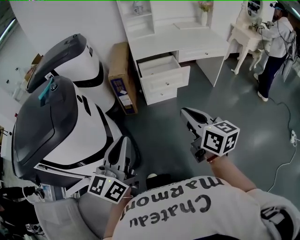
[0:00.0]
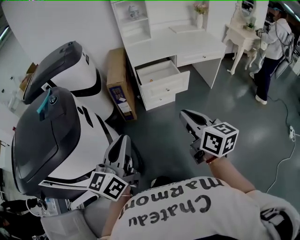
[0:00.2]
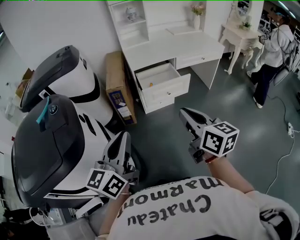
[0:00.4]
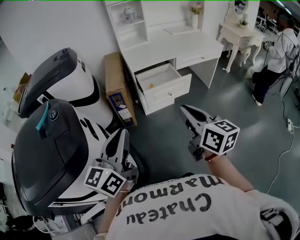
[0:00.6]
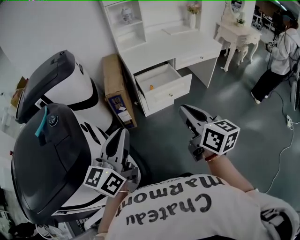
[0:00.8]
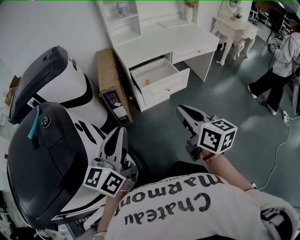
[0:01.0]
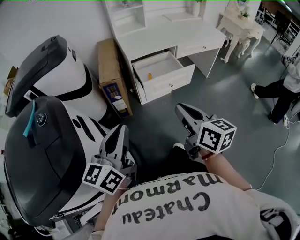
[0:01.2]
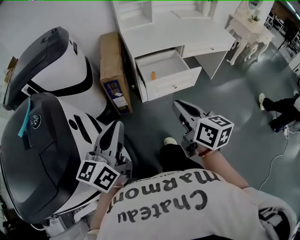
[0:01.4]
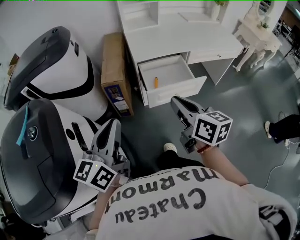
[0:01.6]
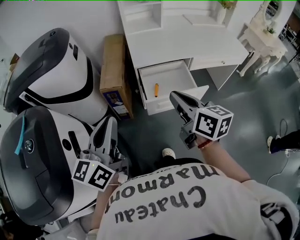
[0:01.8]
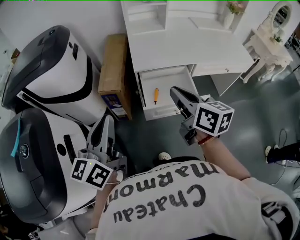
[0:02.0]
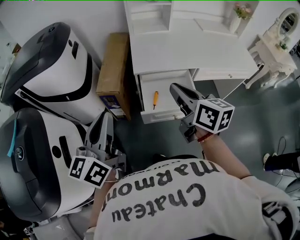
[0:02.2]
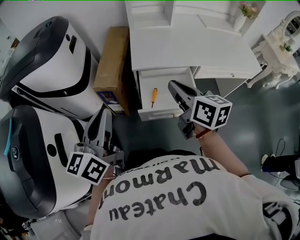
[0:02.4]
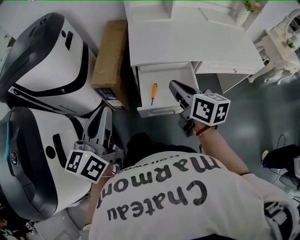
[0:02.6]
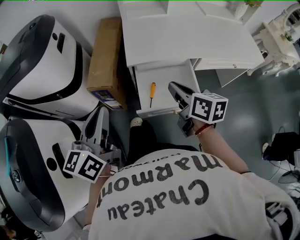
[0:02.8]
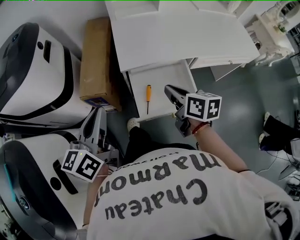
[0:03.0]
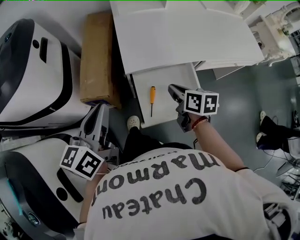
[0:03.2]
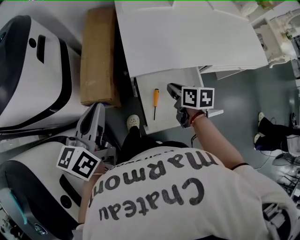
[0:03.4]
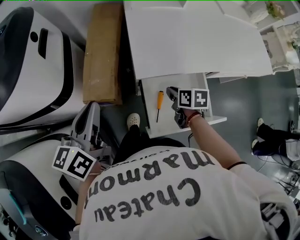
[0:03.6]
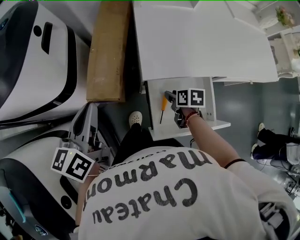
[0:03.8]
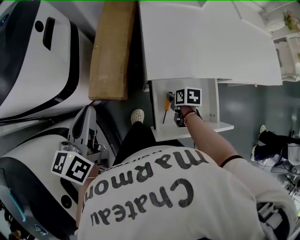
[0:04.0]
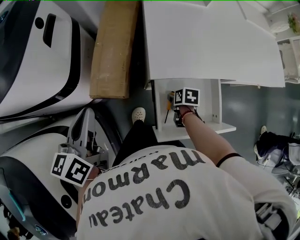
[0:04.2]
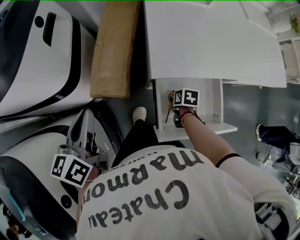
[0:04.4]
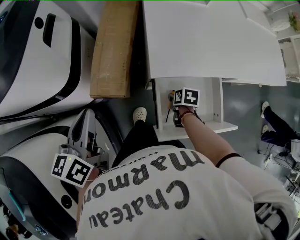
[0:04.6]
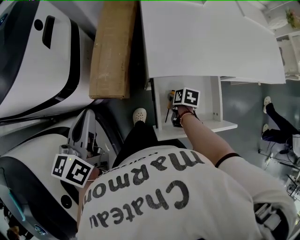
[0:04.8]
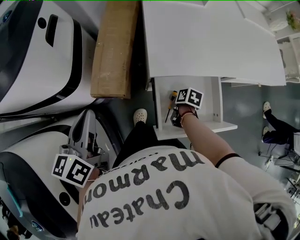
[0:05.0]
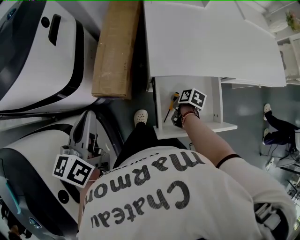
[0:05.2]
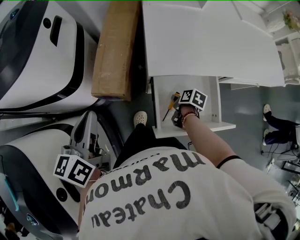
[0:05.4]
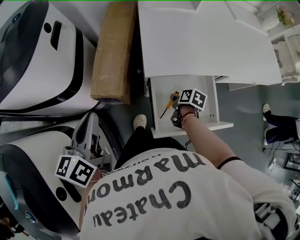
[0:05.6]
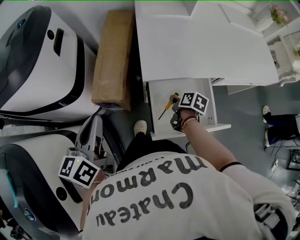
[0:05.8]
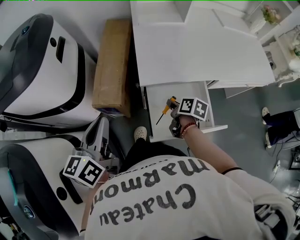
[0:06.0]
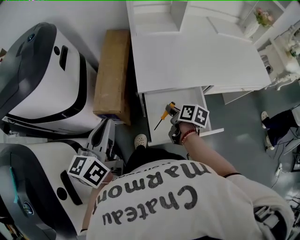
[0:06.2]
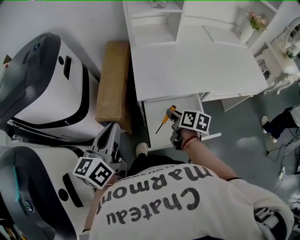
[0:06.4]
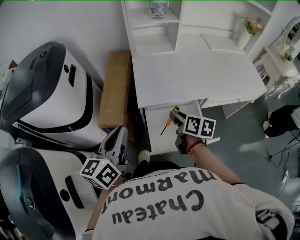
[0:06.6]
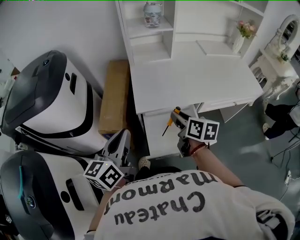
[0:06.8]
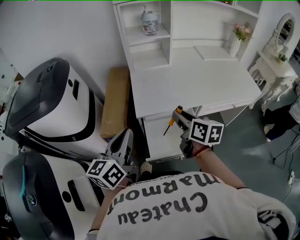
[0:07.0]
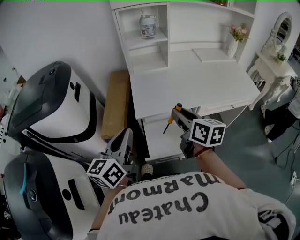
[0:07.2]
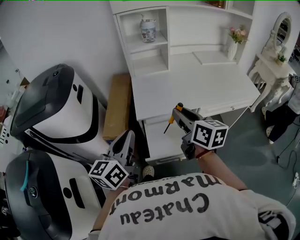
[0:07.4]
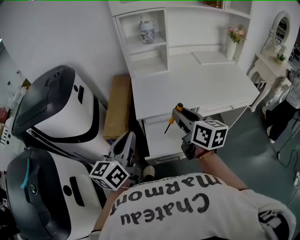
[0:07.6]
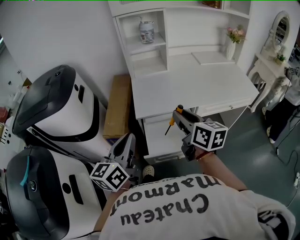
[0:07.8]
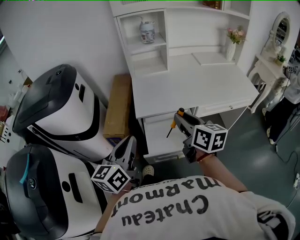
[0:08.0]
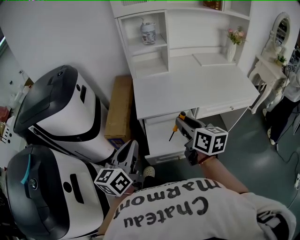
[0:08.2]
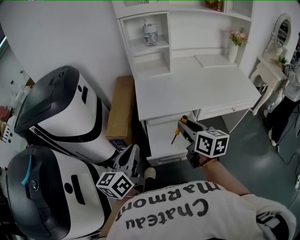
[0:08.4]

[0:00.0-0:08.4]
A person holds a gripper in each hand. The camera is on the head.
0:00.0 to 0:01.4: The two grippers go approximately 25 cm forward and to the left.
0:01.4 to 0:02.8: Both grippers move forward, some 30 cm.
0:02.8 to 0:04.2: The right gripper shifts roughly 30 cm downward, tilts its fingers roughly 50 degrees downward, and opens up, while the left gripper moves forward, to the left and downward, about 25 cm.
0:04.2 to 0:05.6: The left gripper shifts by approximately 5 cm; the right gripper rotates approximately 20 degrees.
0:05.6 to 0:07.0: The right gripper travels upward by about 35 cm, and angles its fingers upward, by roughly 40 degrees. Meanwhile the left gripper goes approximately 20 cm to the right and upward.
0:07.0 to 0:08.4: Both grippers travel together backward, roughly 10 cm.

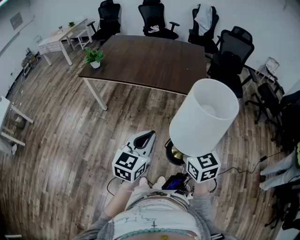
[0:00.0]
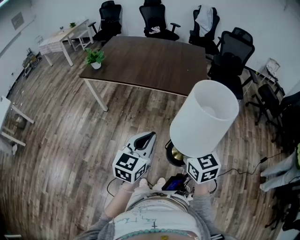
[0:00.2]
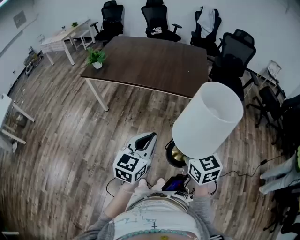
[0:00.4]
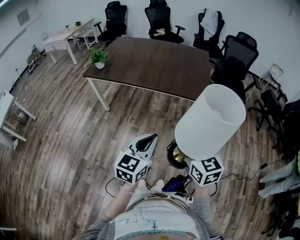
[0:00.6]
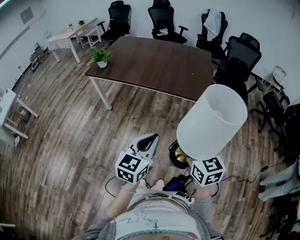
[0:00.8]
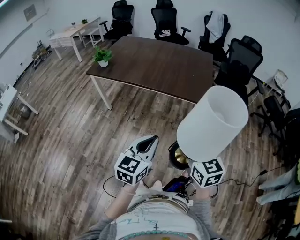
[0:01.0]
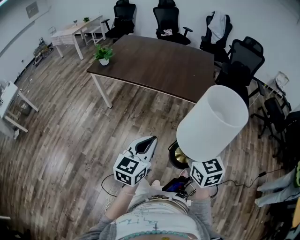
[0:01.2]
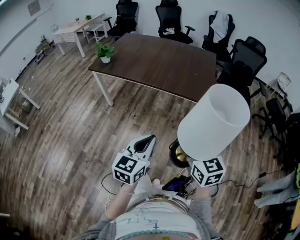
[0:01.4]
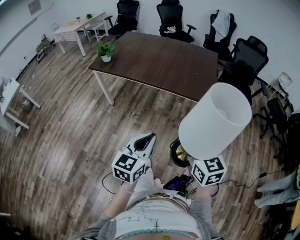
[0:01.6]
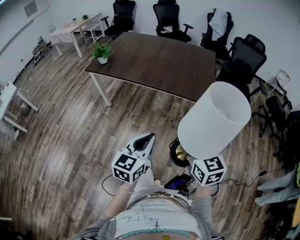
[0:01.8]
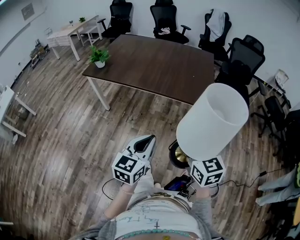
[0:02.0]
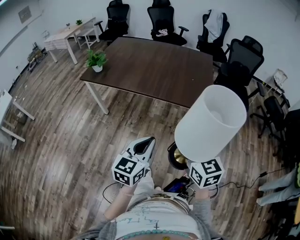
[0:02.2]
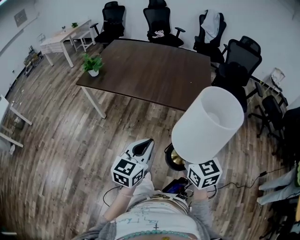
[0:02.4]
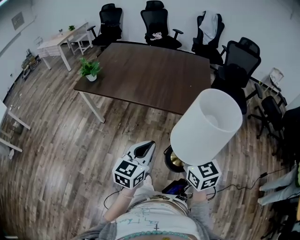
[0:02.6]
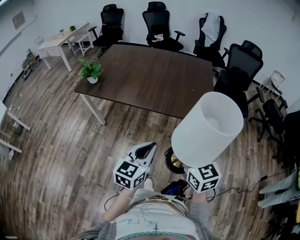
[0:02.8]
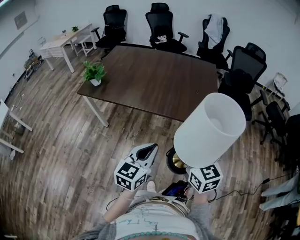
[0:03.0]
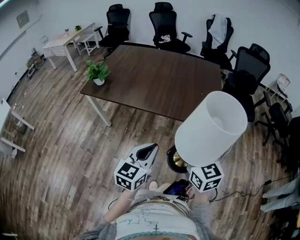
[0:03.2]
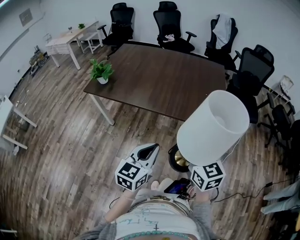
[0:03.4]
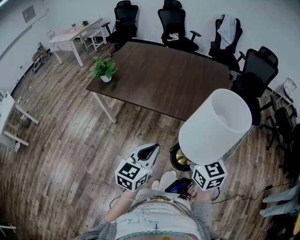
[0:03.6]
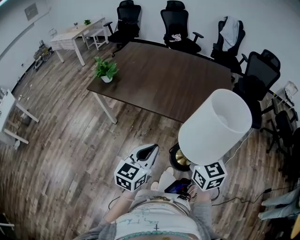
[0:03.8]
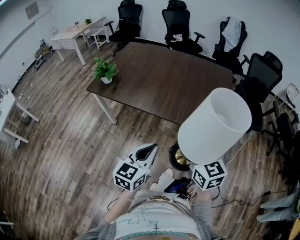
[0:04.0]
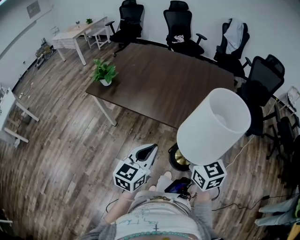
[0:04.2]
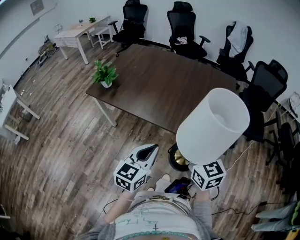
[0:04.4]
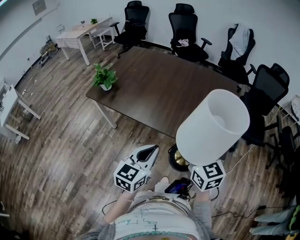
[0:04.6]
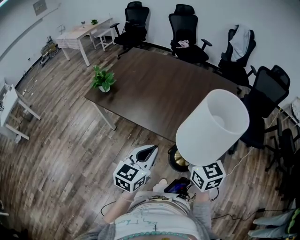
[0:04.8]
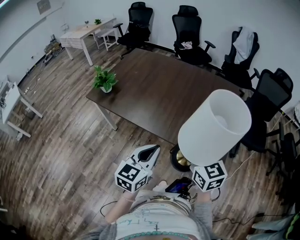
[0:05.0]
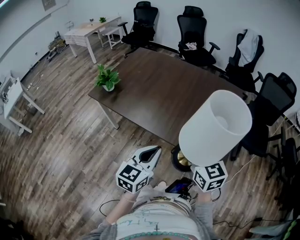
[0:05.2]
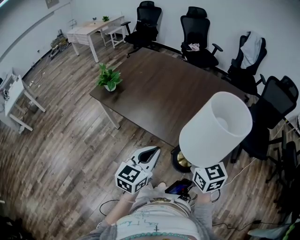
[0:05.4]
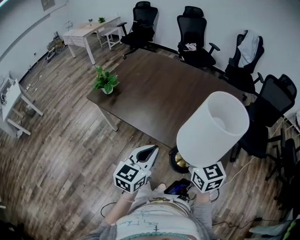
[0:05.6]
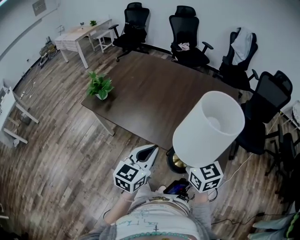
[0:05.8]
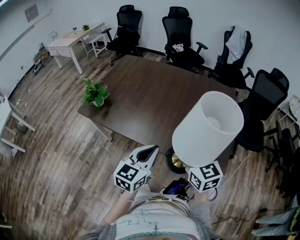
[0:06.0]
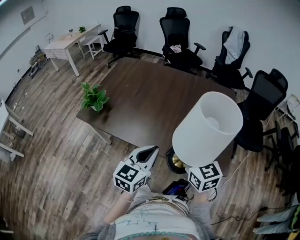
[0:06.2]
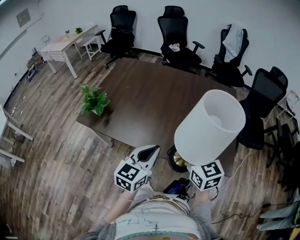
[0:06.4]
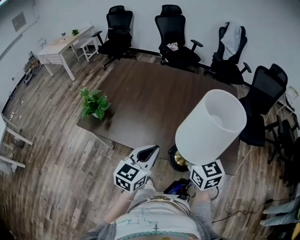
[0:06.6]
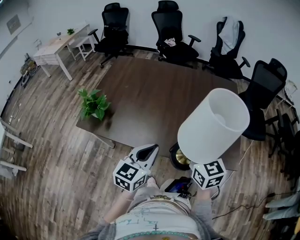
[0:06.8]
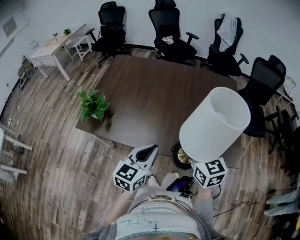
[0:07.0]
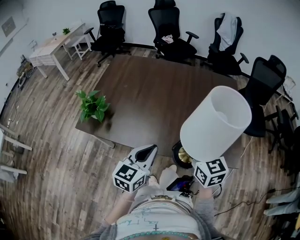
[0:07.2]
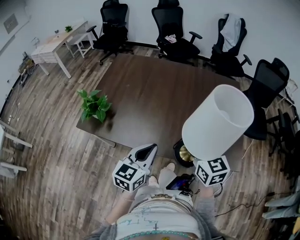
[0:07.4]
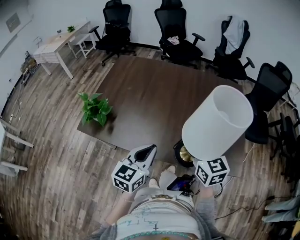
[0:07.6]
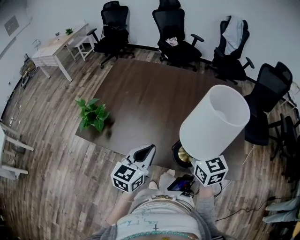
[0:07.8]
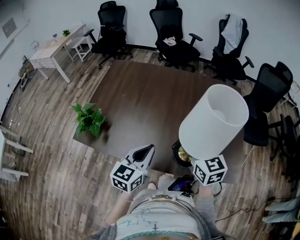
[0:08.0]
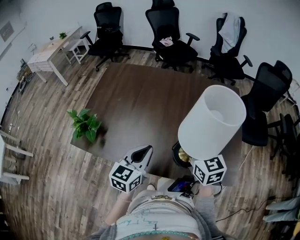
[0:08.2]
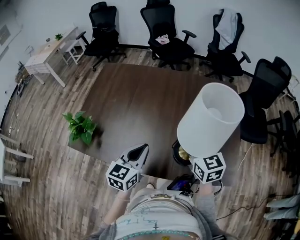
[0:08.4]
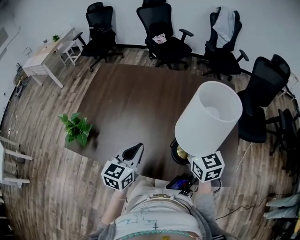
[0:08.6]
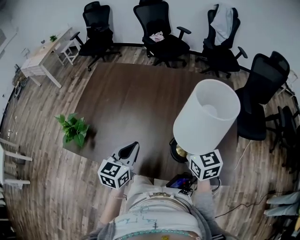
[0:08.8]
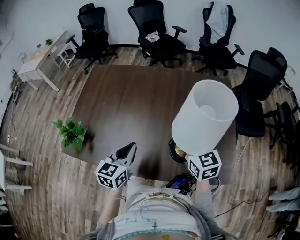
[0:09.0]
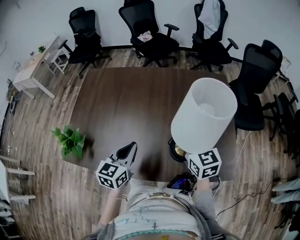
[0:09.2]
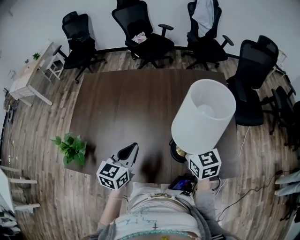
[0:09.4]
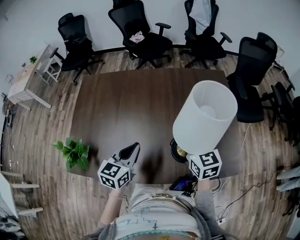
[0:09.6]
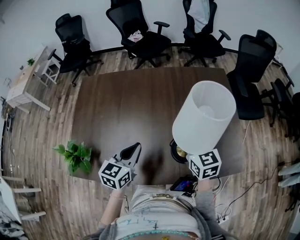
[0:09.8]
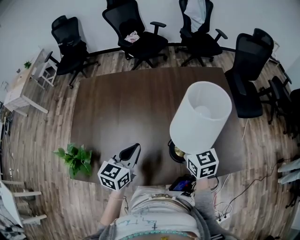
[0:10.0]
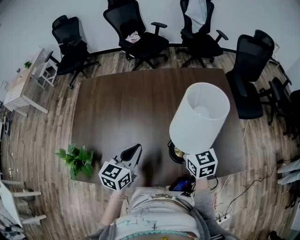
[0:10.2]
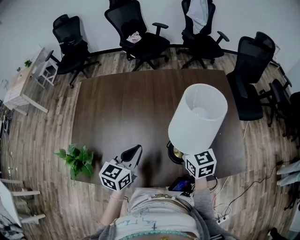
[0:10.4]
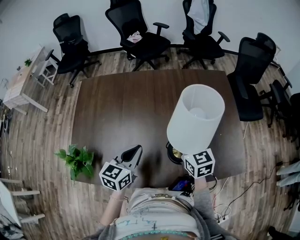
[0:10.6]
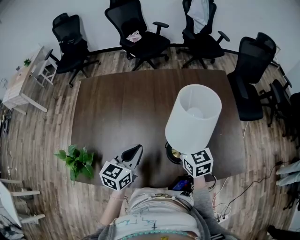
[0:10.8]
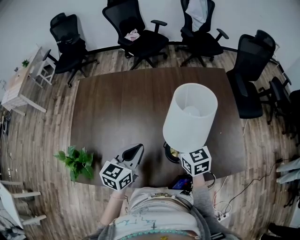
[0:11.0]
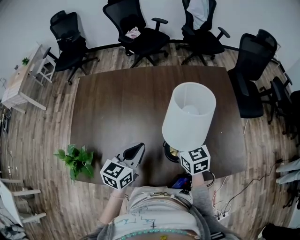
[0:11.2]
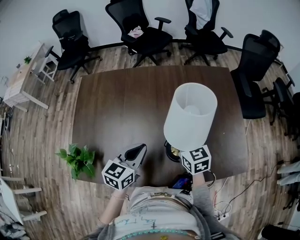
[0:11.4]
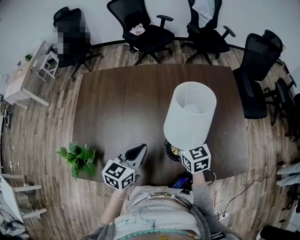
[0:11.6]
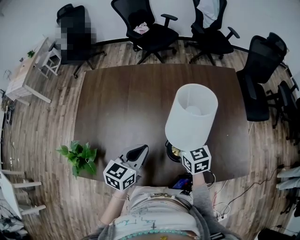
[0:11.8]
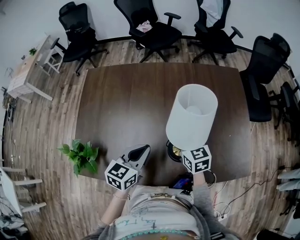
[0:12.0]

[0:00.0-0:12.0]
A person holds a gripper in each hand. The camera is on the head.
0:00.0 to 0:01.6: The right gripper is displaced to the right by roughly 5 cm.
0:01.6 to 0:03.0: The left gripper is displaced forward by about 20 cm. The right gripper goes roughly 20 cm forward and to the left.
0:03.0 to 0:04.4: Both grippers travel together forward, about 15 cm.
0:04.4 to 0:06.0: The two grippers go about 15 cm forward.
0:06.0 to 0:07.6: The left gripper heads to the left and forward, covering some 15 cm; the right gripper moves forward and to the left, some 15 cm.
0:07.6 to 0:09.0: The right gripper travels forward and to the right by roughly 15 cm; the left gripper moves forward, about 15 cm.
0:09.0 to 0:10.4: The left gripper heads forward and to the left, covering approximately 10 cm, while the right gripper travels to the left by about 5 cm.
0:10.4 to 0:12.0: The right gripper heads downward, covering about 5 cm.

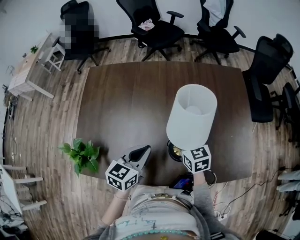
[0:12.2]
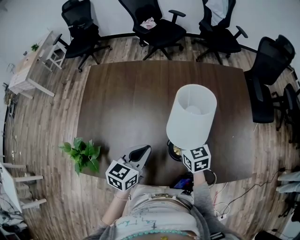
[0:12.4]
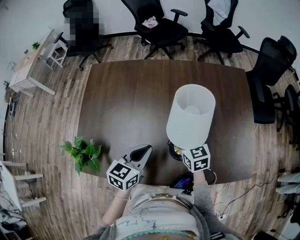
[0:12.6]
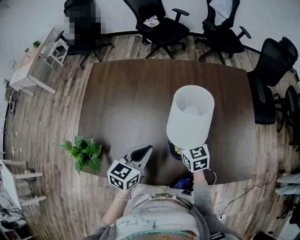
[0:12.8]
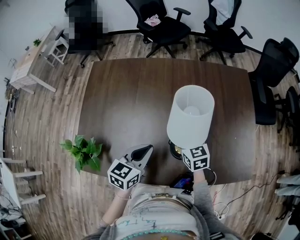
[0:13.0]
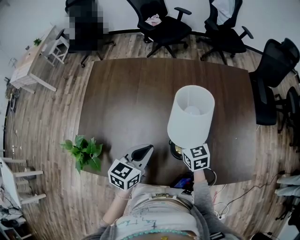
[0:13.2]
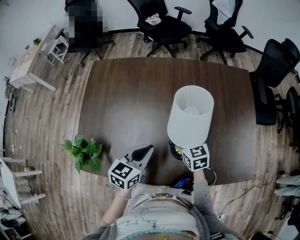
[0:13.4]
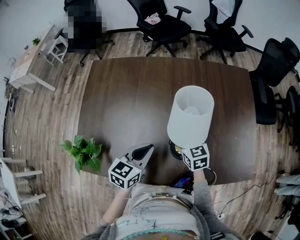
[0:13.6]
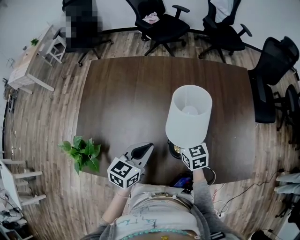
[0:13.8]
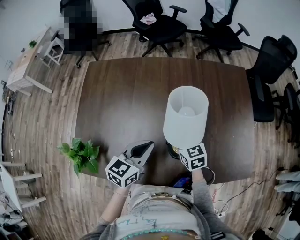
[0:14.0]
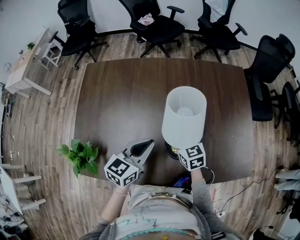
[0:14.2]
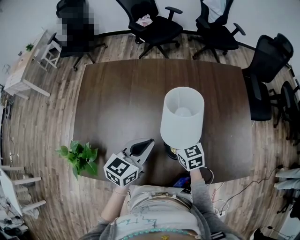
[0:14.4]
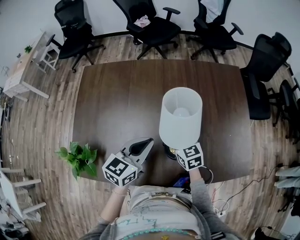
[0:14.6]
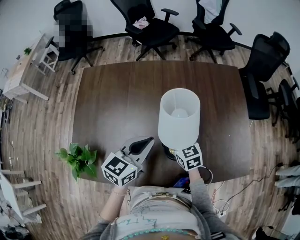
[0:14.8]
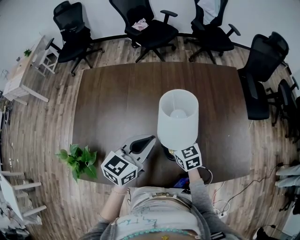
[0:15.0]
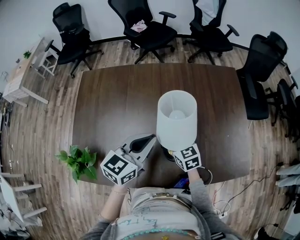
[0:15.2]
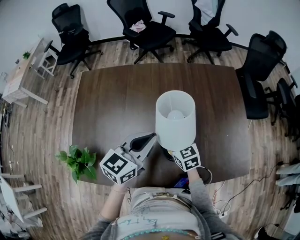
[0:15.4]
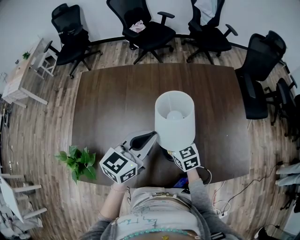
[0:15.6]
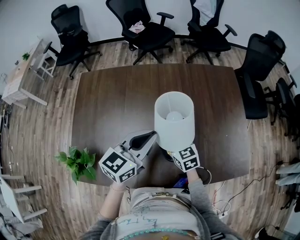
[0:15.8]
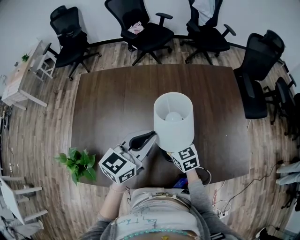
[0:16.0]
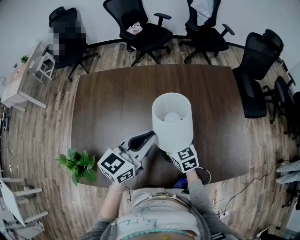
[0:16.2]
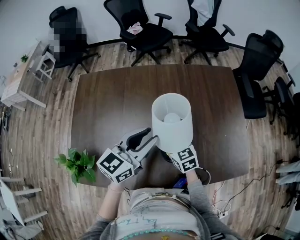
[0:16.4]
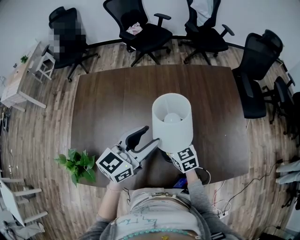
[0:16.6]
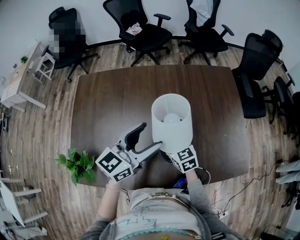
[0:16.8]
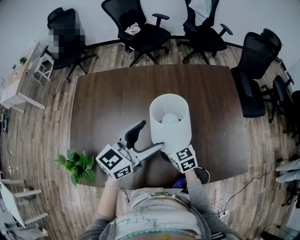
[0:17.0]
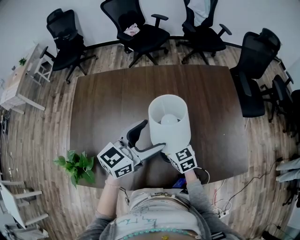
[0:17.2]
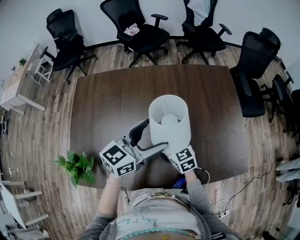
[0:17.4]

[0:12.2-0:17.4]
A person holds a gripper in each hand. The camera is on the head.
0:12.2 to 0:14.0: There are only small adjustments of the grippers.
0:14.0 to 0:15.6: The left gripper shifts about 10 cm upward.
0:15.6 to 0:17.4: The left gripper opens up.
